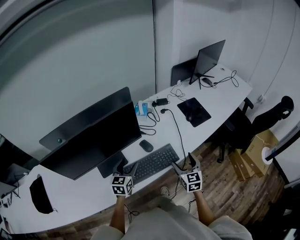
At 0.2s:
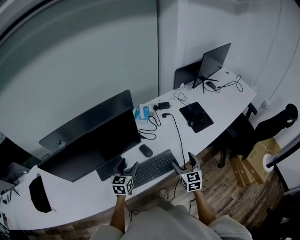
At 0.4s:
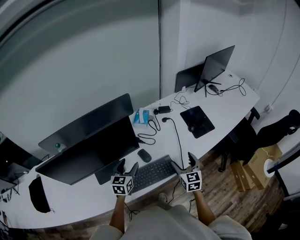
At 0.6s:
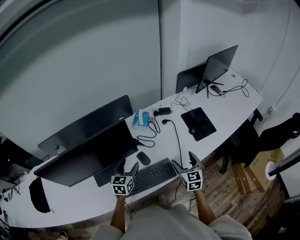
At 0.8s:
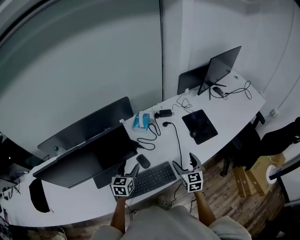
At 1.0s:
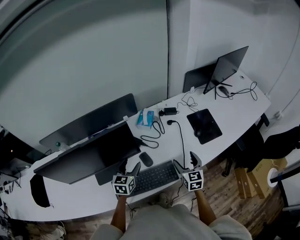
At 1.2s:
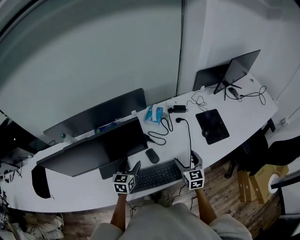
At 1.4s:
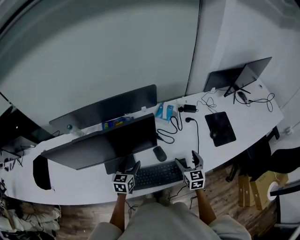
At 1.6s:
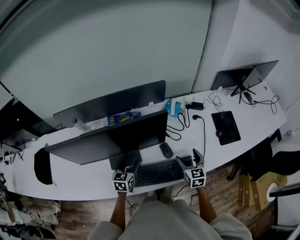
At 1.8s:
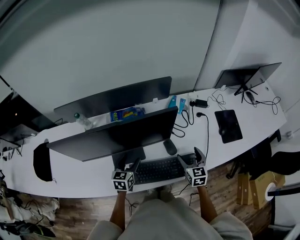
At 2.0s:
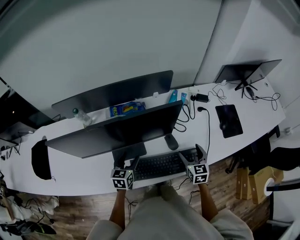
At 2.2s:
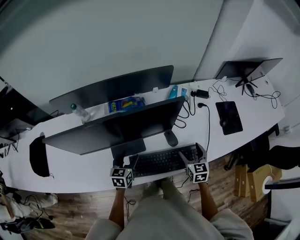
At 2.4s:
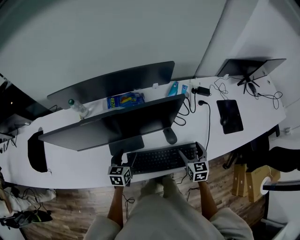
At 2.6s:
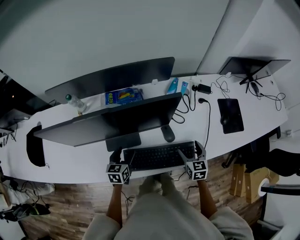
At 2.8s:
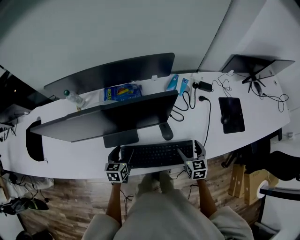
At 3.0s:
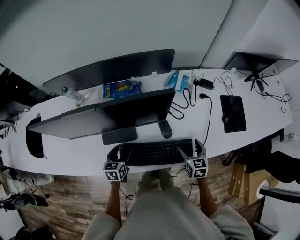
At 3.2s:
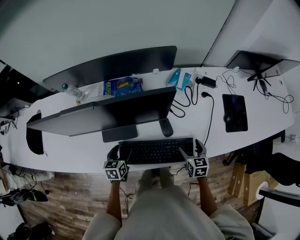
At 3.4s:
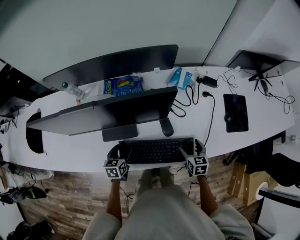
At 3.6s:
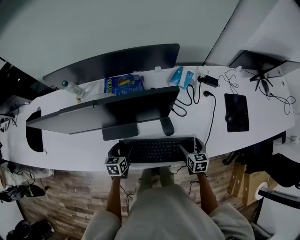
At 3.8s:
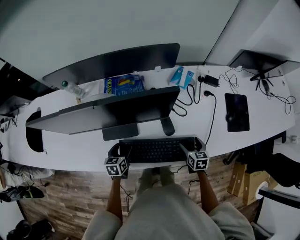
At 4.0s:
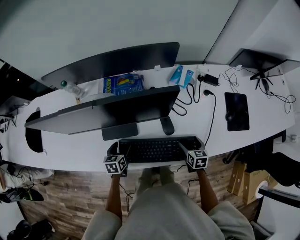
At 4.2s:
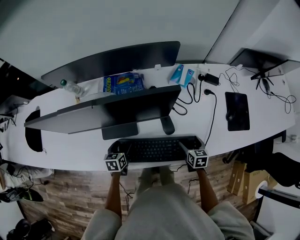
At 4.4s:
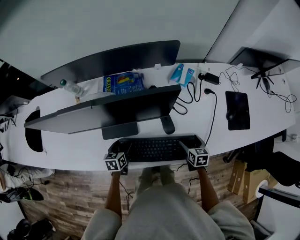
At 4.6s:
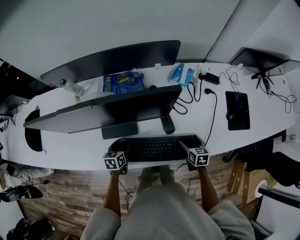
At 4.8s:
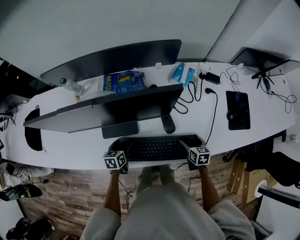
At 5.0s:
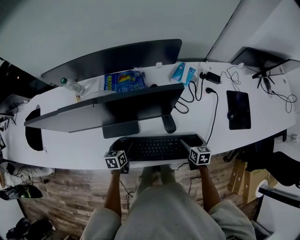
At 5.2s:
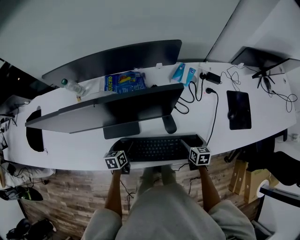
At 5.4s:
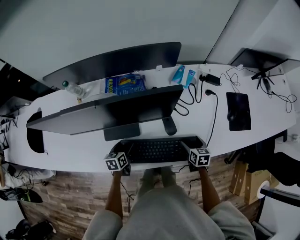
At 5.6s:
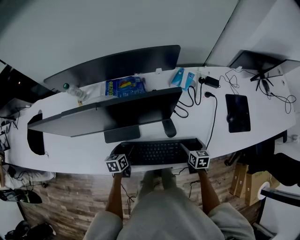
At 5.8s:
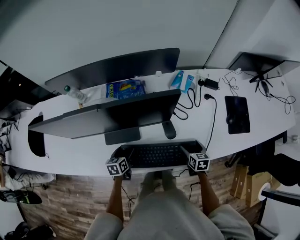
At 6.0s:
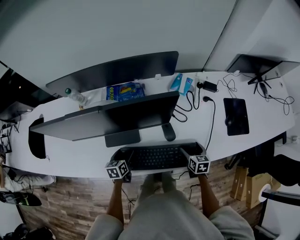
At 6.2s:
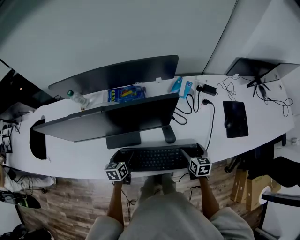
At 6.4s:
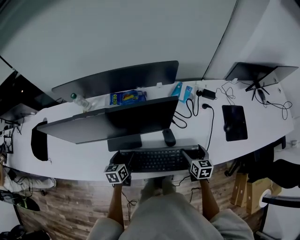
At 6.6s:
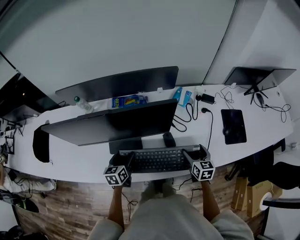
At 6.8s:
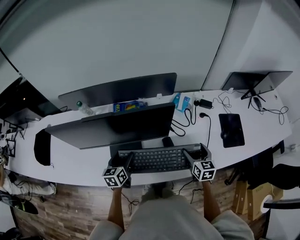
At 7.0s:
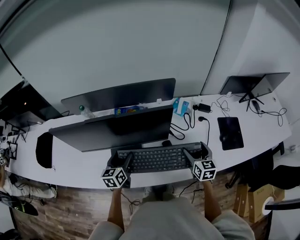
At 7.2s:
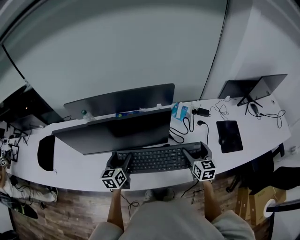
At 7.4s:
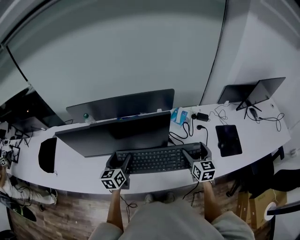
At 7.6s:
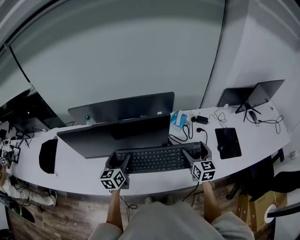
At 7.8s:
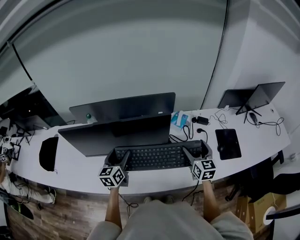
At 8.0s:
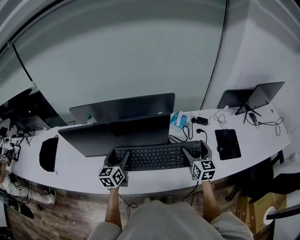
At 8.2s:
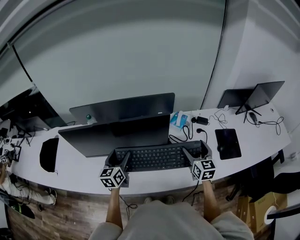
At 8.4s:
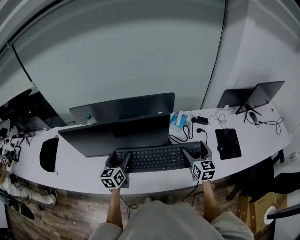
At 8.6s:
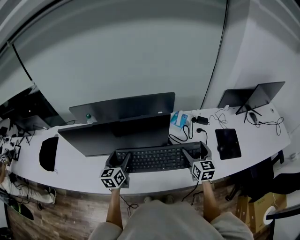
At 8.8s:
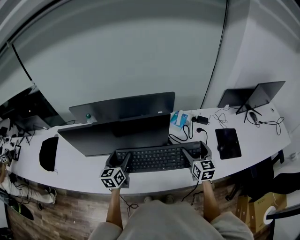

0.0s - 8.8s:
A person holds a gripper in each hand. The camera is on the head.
0.0s - 1.4s: The right gripper goes about 15 cm forward; the left gripper goes some 10 cm forward.
1.4s - 3.0s: The right gripper is displaced downward by about 10 cm; the left gripper is displaced downward, to the left and backward by roughly 15 cm.
3.0s - 4.4s: The two grippers go roughly 10 cm downward.
4.4s - 5.8s: The grippers stay close to where they were, moving slightly.
5.8s - 7.4s: The two grippers go approximately 25 cm upward. The left gripper turns by some 30 degrees. The right gripper changes its angle by roughly 30 degrees.
7.4s - 8.8s: The grippers make only small movements.

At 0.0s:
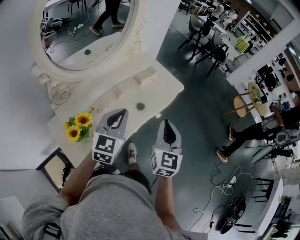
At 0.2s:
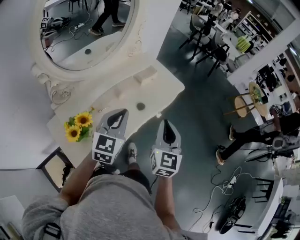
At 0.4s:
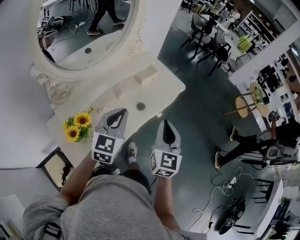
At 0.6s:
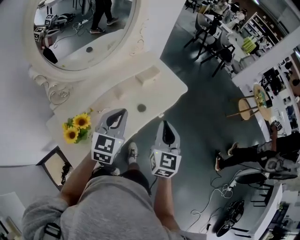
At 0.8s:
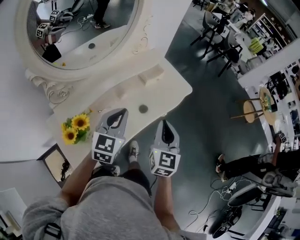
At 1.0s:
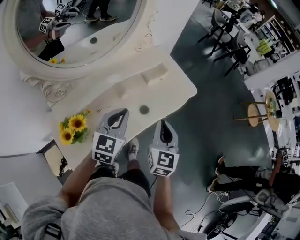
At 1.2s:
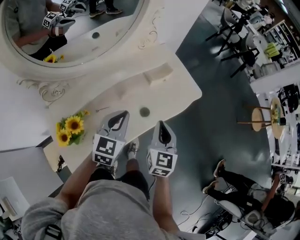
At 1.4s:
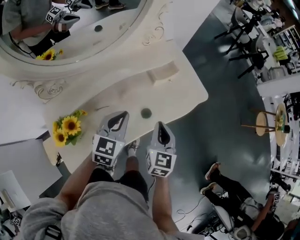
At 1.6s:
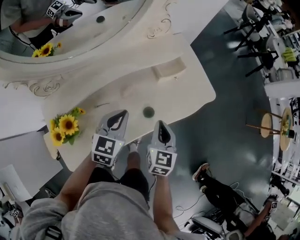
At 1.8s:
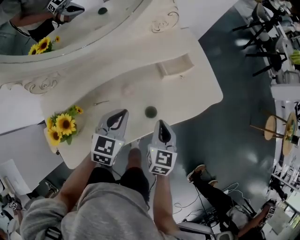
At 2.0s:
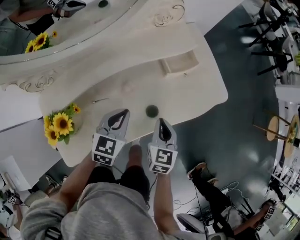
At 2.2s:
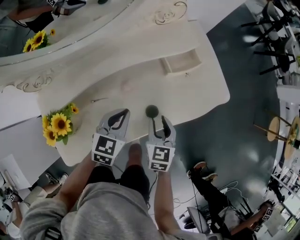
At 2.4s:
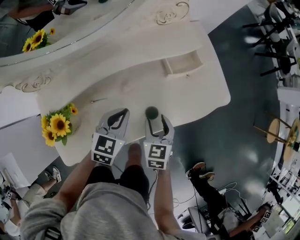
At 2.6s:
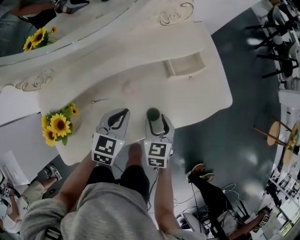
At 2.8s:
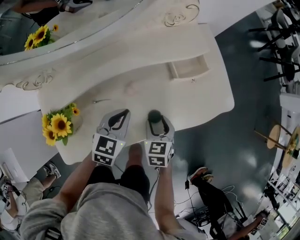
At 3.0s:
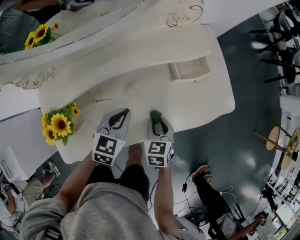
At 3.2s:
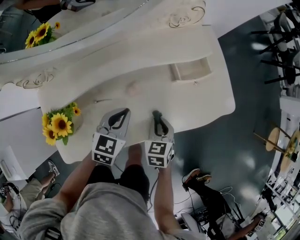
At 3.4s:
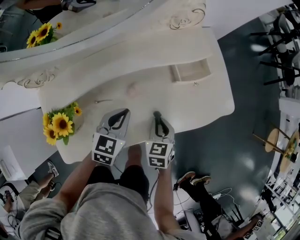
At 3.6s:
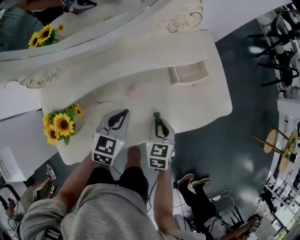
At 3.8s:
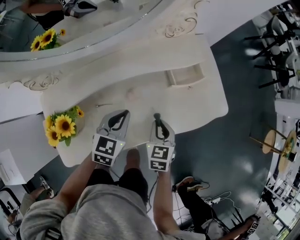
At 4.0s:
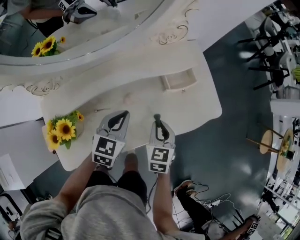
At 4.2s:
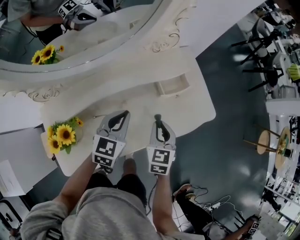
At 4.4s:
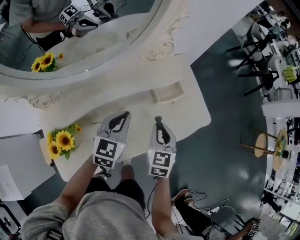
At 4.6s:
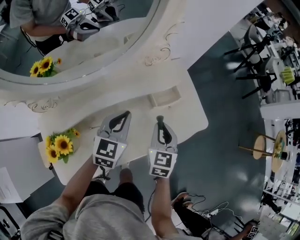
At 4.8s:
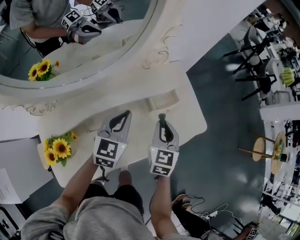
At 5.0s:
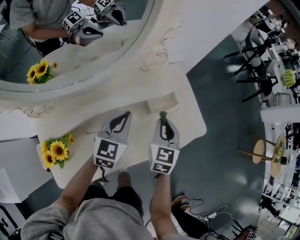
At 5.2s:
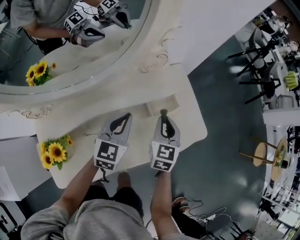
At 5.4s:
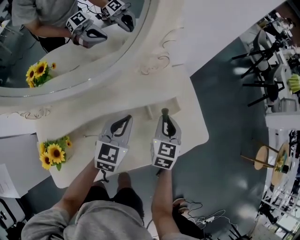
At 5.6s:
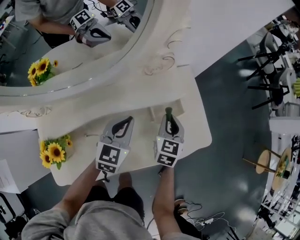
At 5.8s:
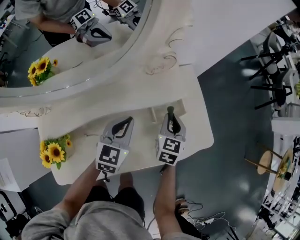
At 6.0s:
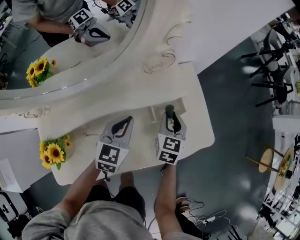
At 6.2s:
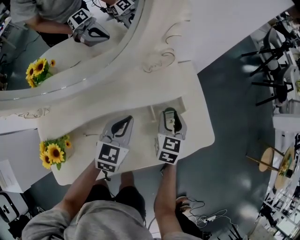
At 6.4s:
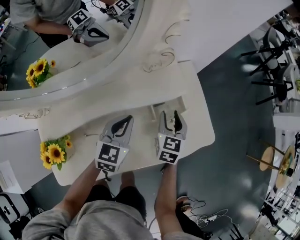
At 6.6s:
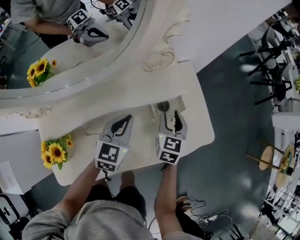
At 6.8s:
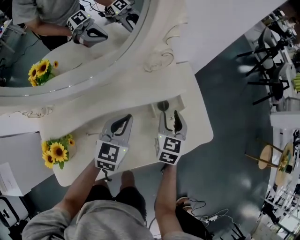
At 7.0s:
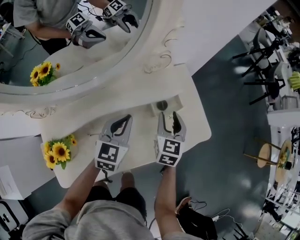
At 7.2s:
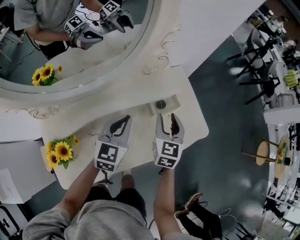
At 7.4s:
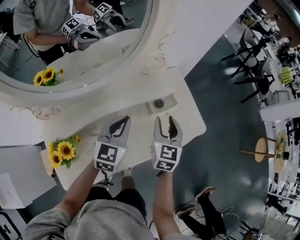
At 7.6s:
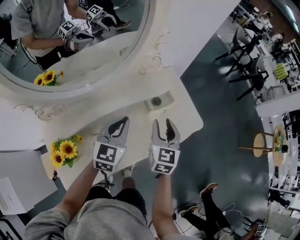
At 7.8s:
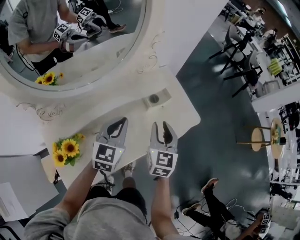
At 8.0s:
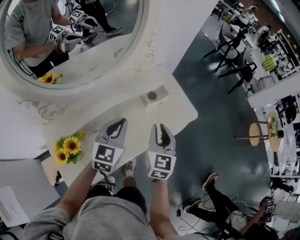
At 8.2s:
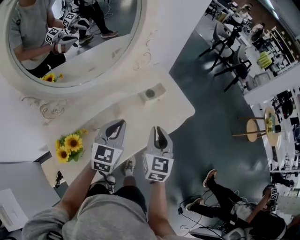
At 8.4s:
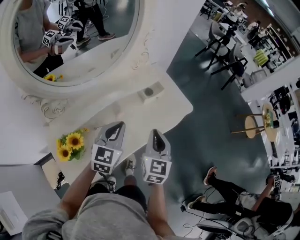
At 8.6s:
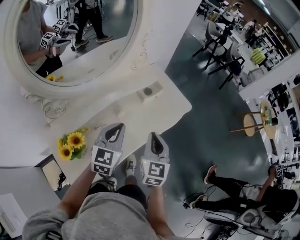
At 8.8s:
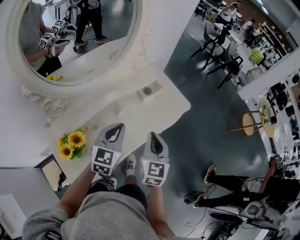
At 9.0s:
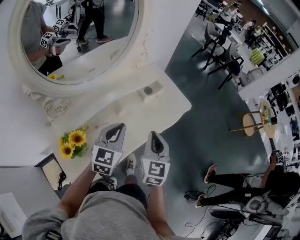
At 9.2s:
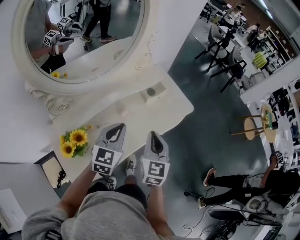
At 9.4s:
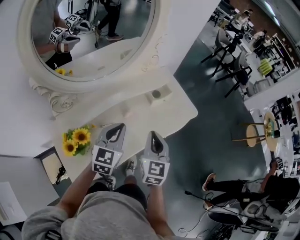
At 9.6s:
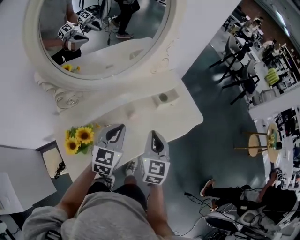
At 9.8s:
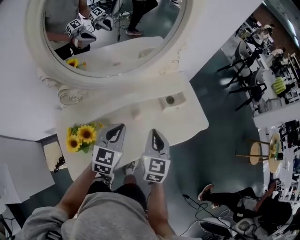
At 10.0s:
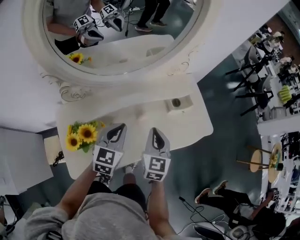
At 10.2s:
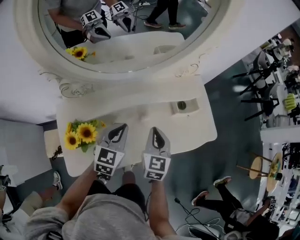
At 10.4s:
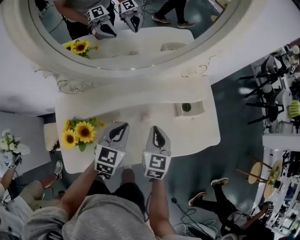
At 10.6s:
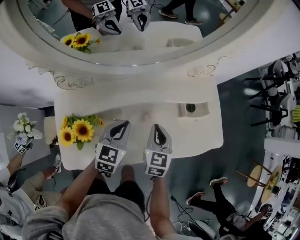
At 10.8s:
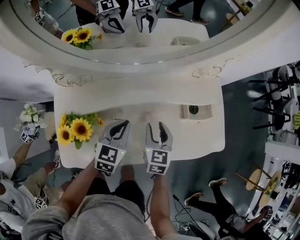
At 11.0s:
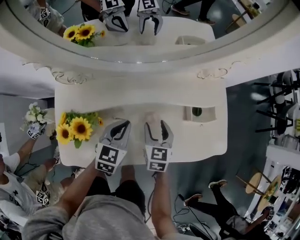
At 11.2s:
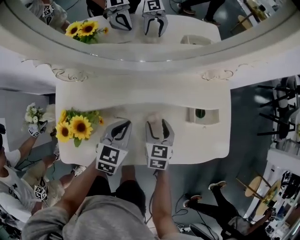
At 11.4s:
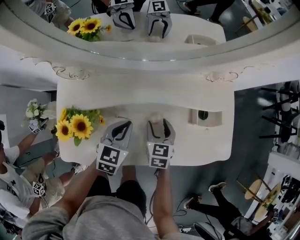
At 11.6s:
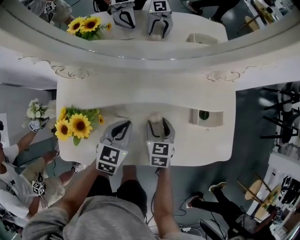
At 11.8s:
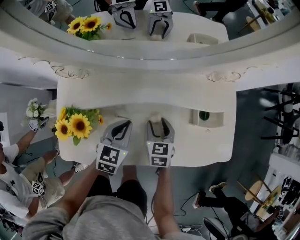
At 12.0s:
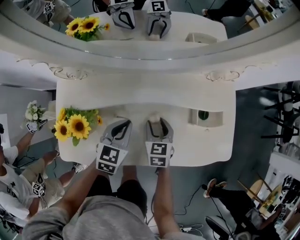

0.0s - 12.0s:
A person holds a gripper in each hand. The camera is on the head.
0.0s - 1.6s: The grippers both shift downward and forward by approximately 25 cm. The left gripper turns by approximately 20 degrees; the right gripper turns by roughly 30 degrees.
1.6s - 3.0s: Both grippers travel together downward, about 10 cm. The right gripper swivels approximately 30 degrees, and opens its fingers.
3.0s - 4.4s: The grippers both shift upward and forward by some 15 cm. The right gripper rotates roughly 20 degrees.
4.4s - 6.0s: The left gripper moves forward and downward, approximately 10 cm. The right gripper moves forward and downward, approximately 15 cm.
6.0s - 7.6s: Both grippers move upward and backward, about 15 cm.
7.6s - 9.0s: The two grippers go roughly 15 cm backward. The right gripper closes up.
9.0s - 10.4s: The left gripper moves downward, to the left and forward, about 15 cm, and rotates roughly 30 degrees. The right gripper moves forward, downward and to the left, approximately 20 cm, and swivels some 30 degrees.
10.4s - 12.0s: The right gripper shifts some 15 cm downward, rotates approximately 20 degrees, and opens; the left gripper is displaced downward by some 5 cm.

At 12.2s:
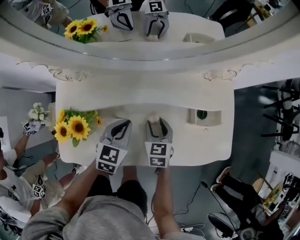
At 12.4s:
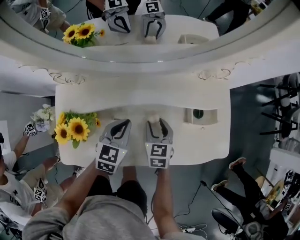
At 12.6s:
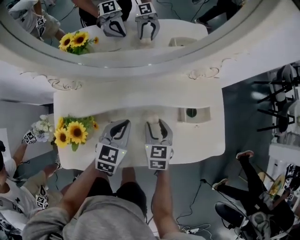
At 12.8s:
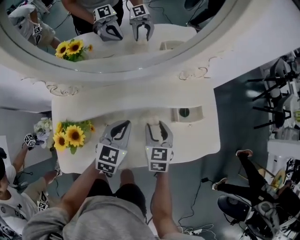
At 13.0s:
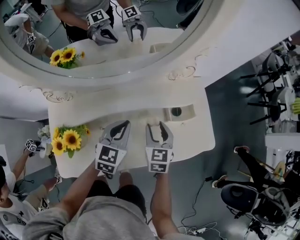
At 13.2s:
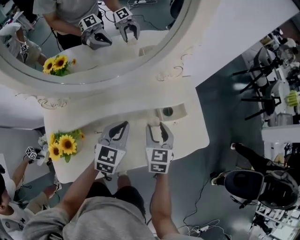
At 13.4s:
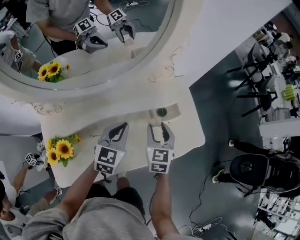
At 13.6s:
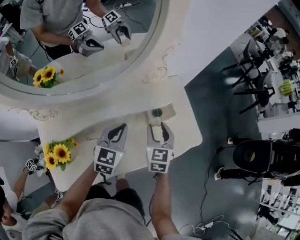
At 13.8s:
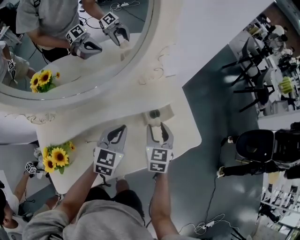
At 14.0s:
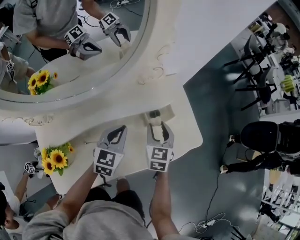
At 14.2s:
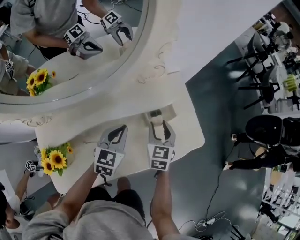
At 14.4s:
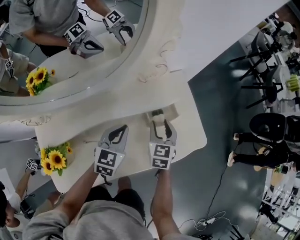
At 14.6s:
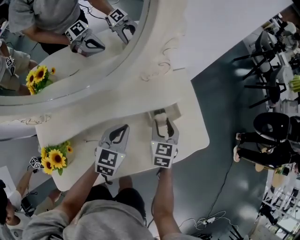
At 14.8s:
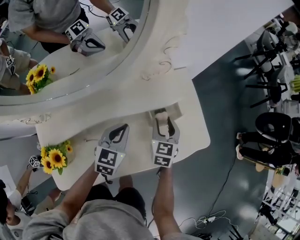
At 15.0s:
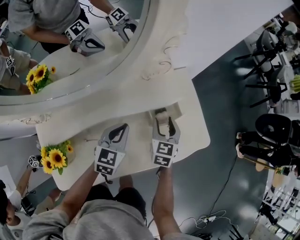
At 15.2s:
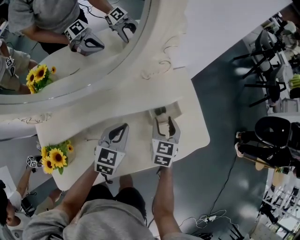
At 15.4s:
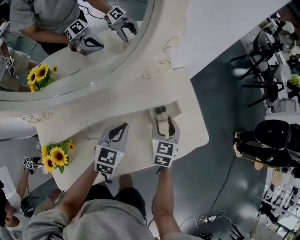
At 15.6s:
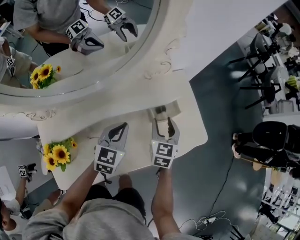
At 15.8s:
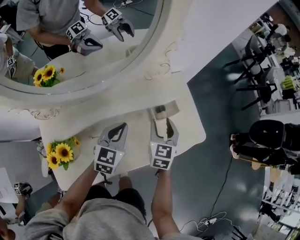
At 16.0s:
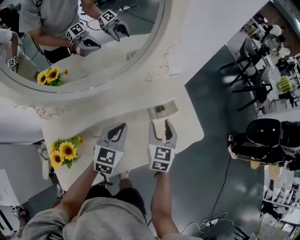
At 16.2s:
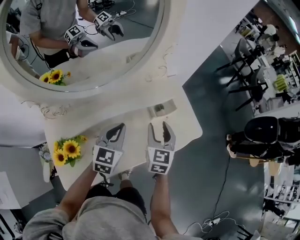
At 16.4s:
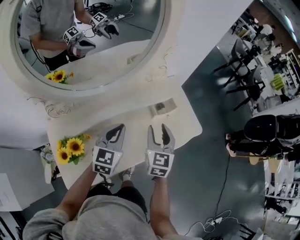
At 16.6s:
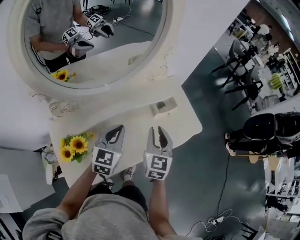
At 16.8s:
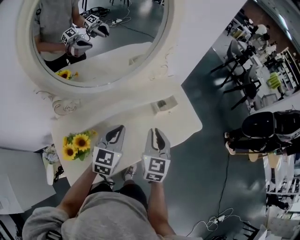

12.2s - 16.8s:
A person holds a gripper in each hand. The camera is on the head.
12.2s - 13.8s: The left gripper is displaced to the right, upward and forward by approximately 20 cm, and turns by some 20 degrees; the right gripper heads to the right and upward, covering approximately 20 cm, and changes its angle by some 30 degrees.
13.8s - 15.2s: The right gripper is displaced downward by some 5 cm.
15.2s - 16.8s: The two grippers go some 25 cm backward, upward and to the left. The right gripper closes its fingers.
